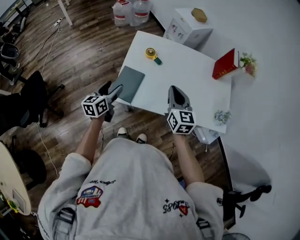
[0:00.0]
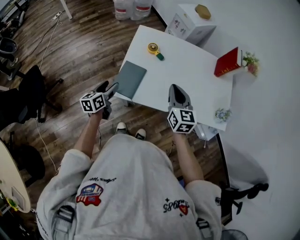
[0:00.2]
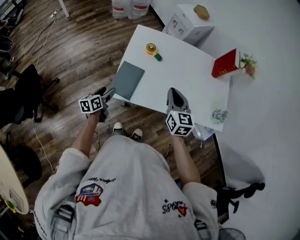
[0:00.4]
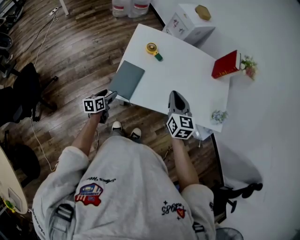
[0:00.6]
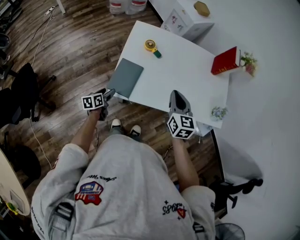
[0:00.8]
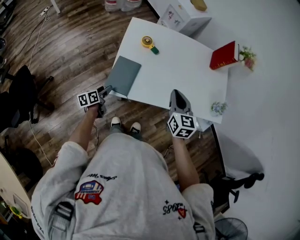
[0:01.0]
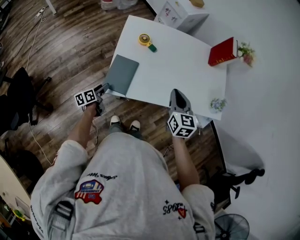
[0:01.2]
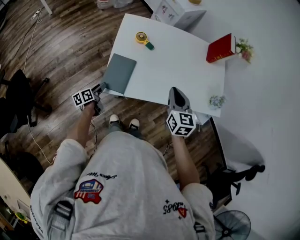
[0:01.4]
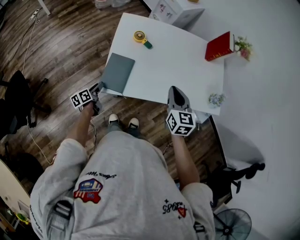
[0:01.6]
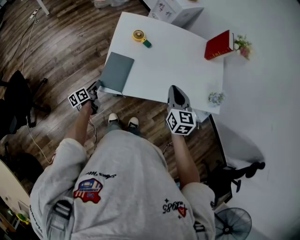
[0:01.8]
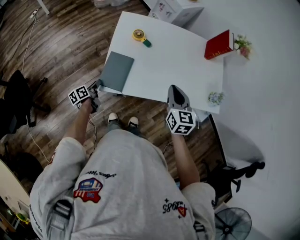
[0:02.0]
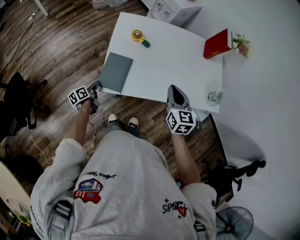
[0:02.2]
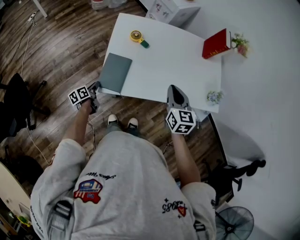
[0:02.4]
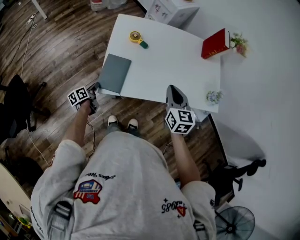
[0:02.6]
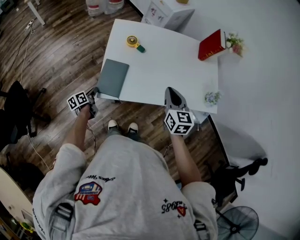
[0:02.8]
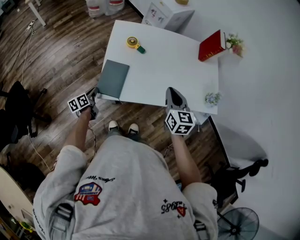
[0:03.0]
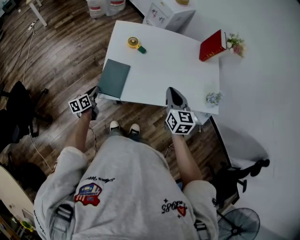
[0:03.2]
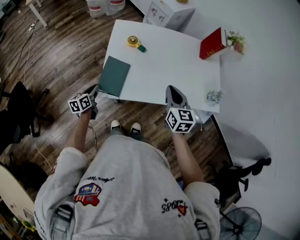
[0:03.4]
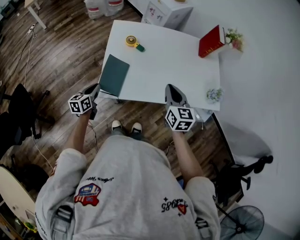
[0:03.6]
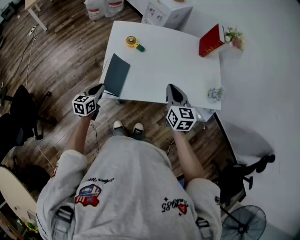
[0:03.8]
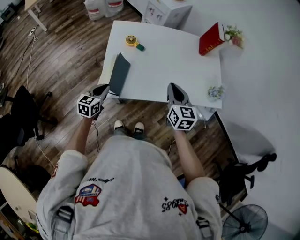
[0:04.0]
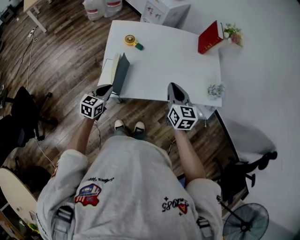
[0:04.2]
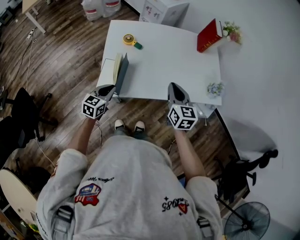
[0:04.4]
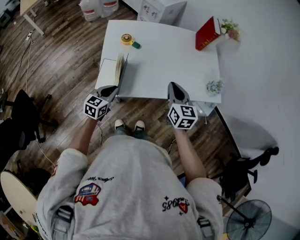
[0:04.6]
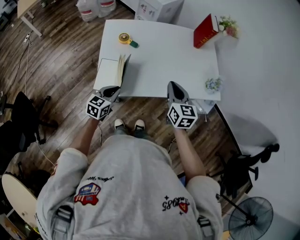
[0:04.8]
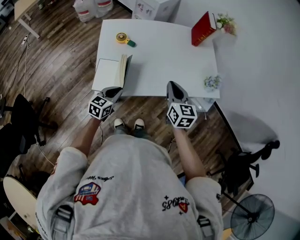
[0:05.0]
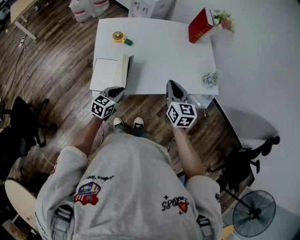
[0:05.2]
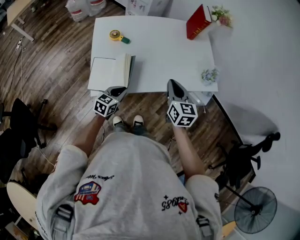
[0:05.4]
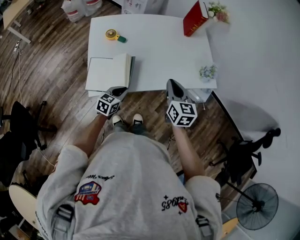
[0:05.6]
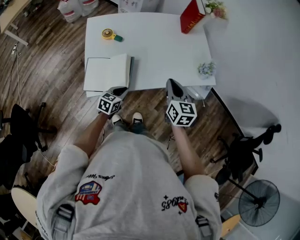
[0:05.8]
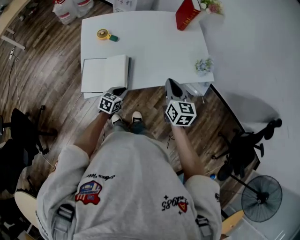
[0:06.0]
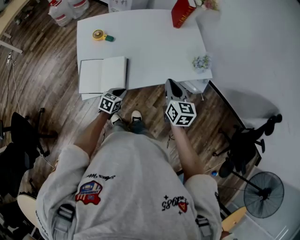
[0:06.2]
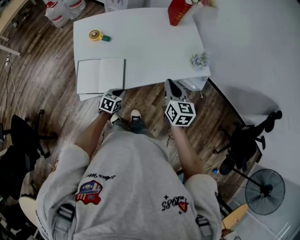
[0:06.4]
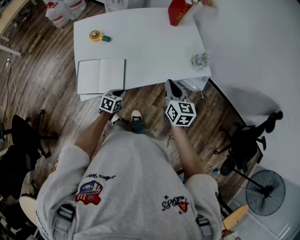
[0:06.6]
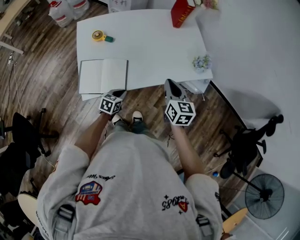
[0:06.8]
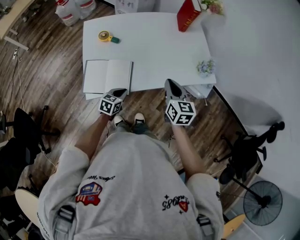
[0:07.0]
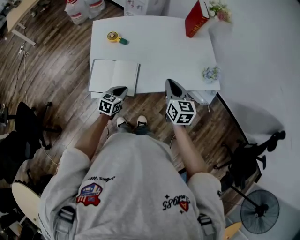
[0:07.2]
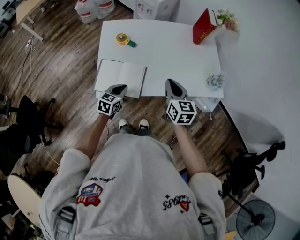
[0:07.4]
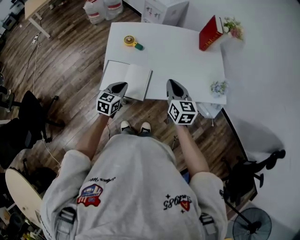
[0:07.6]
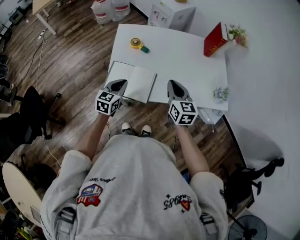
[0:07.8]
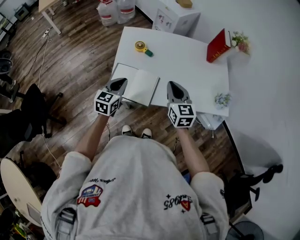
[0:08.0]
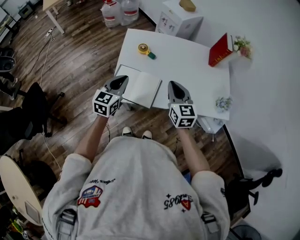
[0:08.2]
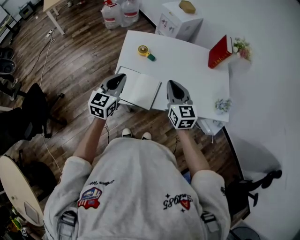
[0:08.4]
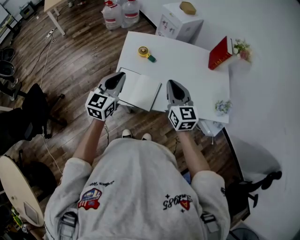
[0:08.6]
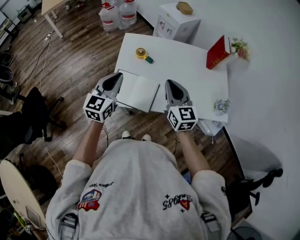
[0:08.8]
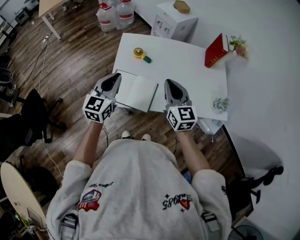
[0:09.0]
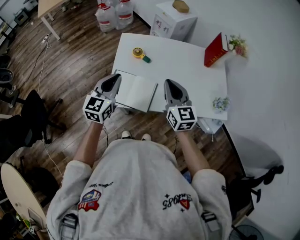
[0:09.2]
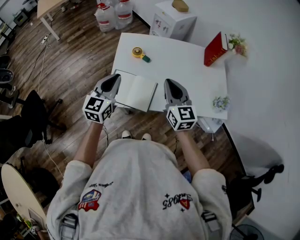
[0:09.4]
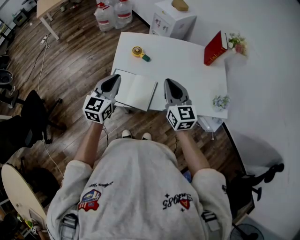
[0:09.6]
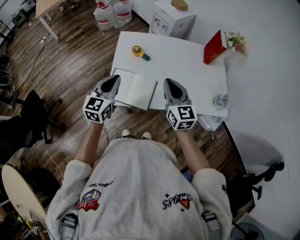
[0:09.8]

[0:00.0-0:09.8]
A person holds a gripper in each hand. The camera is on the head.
0.0 to 1.4 s: The right gripper changes place by some 5 cm, while the left gripper is displaced downward by approximately 20 cm, and changes its angle by roughly 30 degrees.
1.4 to 2.8 s: The left gripper closes up.
2.8 to 4.2 s: The left gripper goes some 20 cm upward and to the right, and twists about 50 degrees clockwise, seen from behind.
4.2 to 5.6 s: The left gripper moves to the right and downward, roughly 15 cm. The right gripper moves to the right, roughly 5 cm.
7.0 to 8.4 s: The right gripper moves about 20 cm, and rotates some 30 degrees. Meanwhile the left gripper moves upward, some 25 cm, and turns by some 40 degrees.
8.4 to 9.8 s: The grippers stay close to where they were, moving slightly.

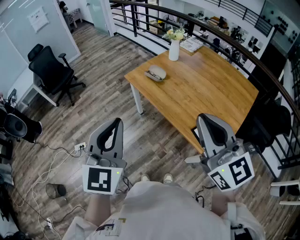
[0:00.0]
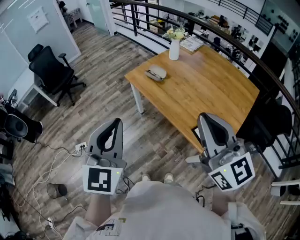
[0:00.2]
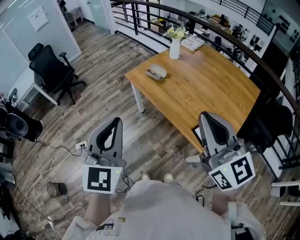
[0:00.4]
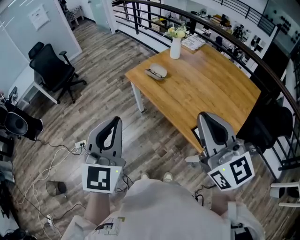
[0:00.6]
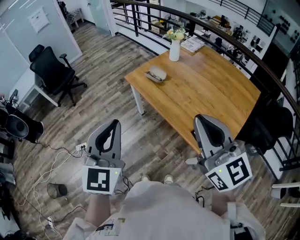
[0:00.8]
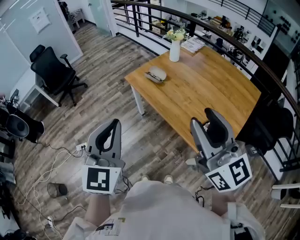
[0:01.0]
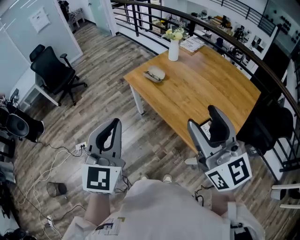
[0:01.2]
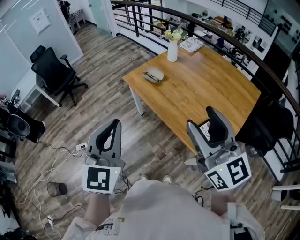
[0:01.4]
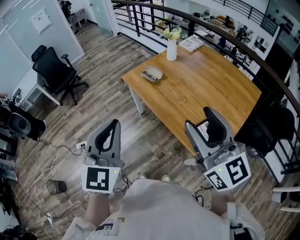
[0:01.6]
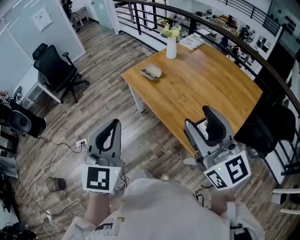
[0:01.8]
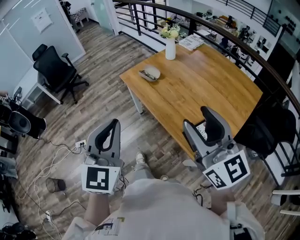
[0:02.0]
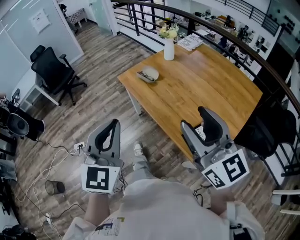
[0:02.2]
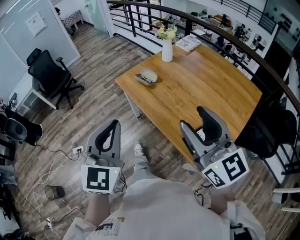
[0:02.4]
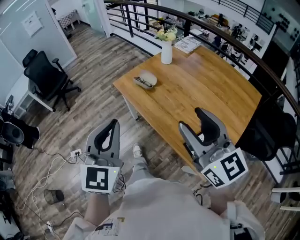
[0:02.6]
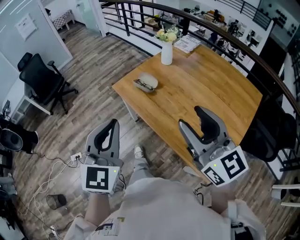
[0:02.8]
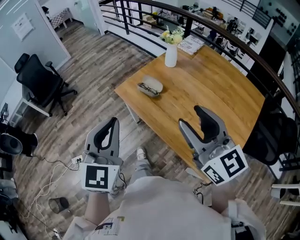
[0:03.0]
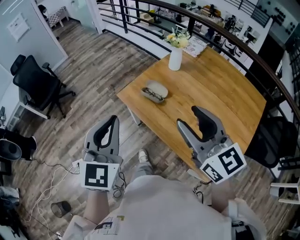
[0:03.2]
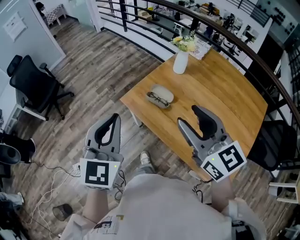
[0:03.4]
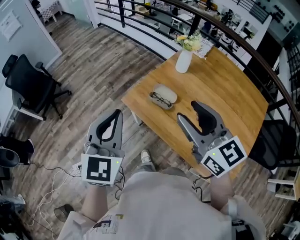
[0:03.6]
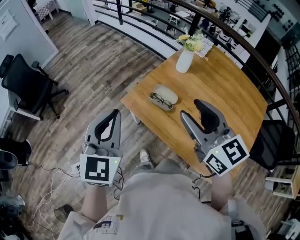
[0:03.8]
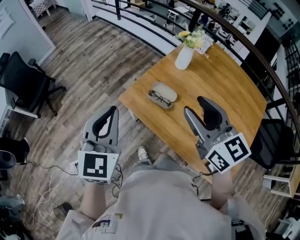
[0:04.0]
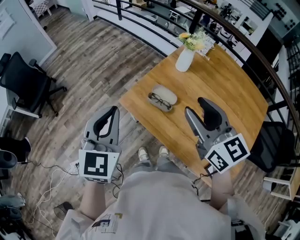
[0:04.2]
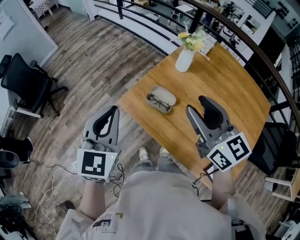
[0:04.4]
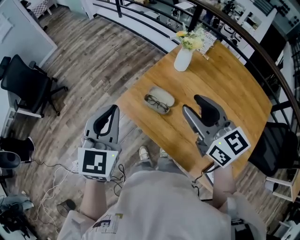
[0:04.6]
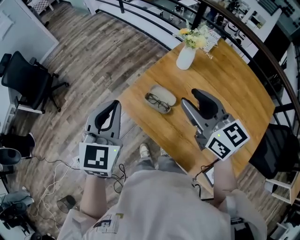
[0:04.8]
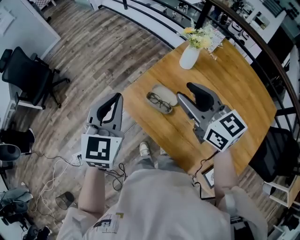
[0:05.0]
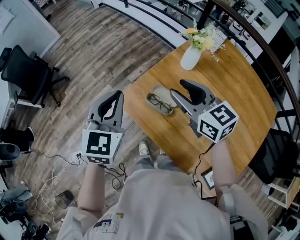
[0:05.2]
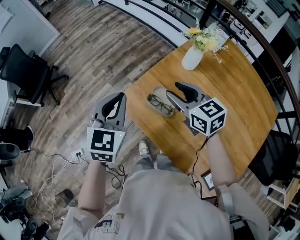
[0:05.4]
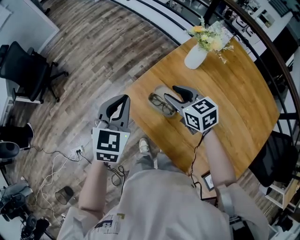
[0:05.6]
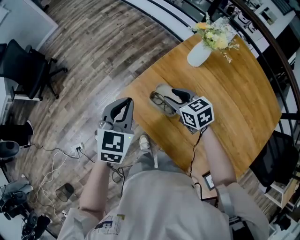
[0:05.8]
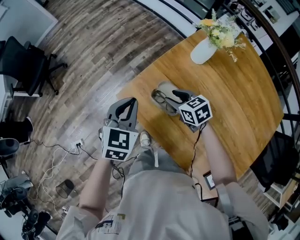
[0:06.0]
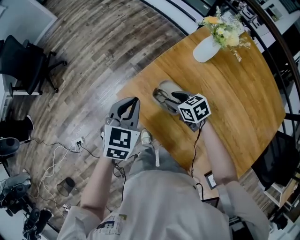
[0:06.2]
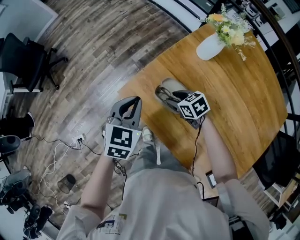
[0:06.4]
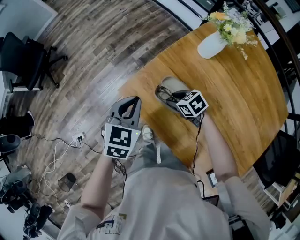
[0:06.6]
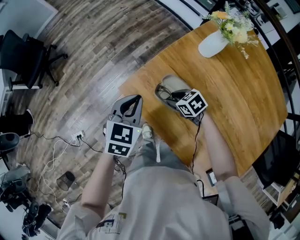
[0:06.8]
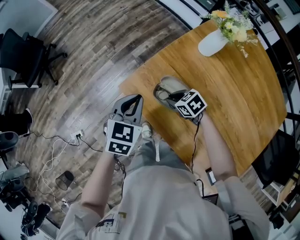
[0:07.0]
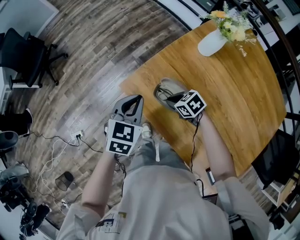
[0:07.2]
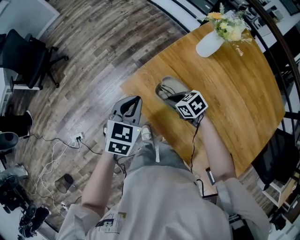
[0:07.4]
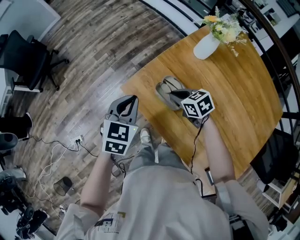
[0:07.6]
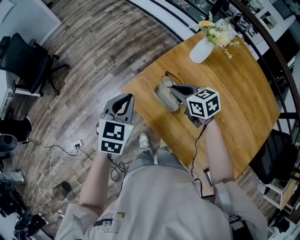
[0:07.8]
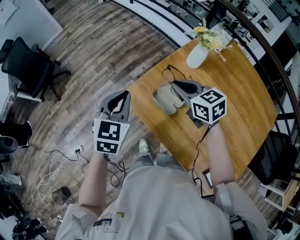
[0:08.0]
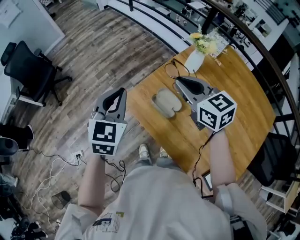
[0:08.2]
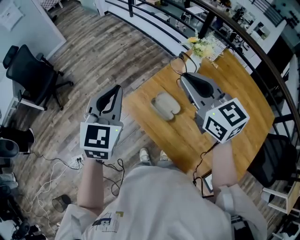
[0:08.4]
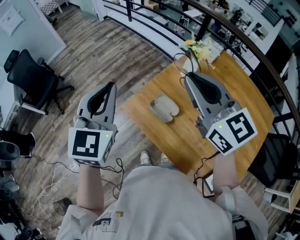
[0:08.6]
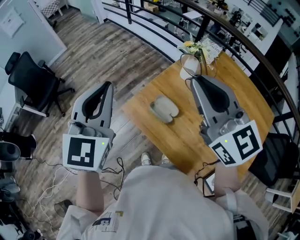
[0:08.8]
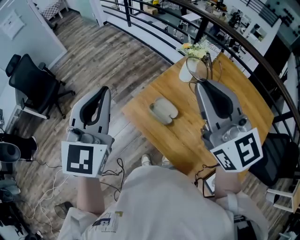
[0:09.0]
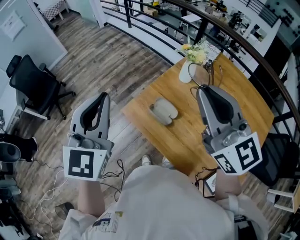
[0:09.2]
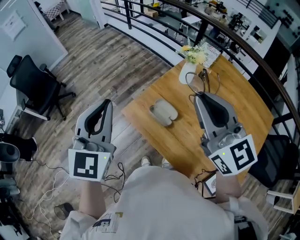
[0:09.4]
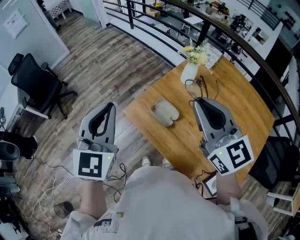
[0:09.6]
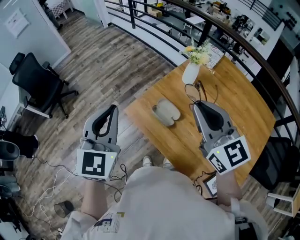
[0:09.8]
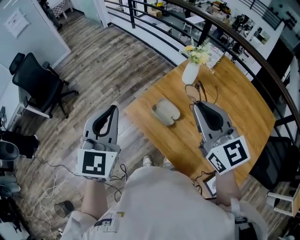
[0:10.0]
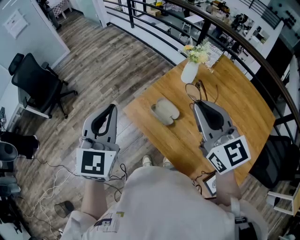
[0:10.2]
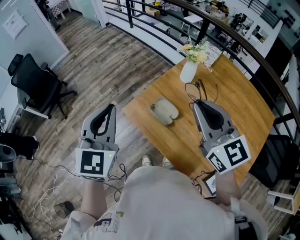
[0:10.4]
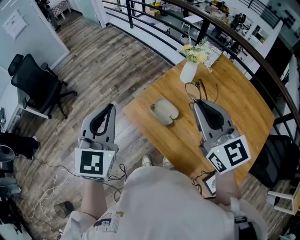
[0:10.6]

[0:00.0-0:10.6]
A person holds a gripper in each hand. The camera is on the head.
0.0 to 1.6 s: The two grippers go roughly 5 cm to the right. The right gripper opens.
1.6 to 3.0 s: The two grippers go approximately 25 cm forward.
3.0 to 4.6 s: Both grippers travel together forward, about 30 cm.
4.6 to 6.0 s: The right gripper goes some 35 cm downward and forward, and points its fingers some 30 degrees further downward; the left gripper goes some 20 cm downward and forward.
6.0 to 7.6 s: The right gripper reaches roughly 10 cm downward, then returns, and closes.
7.6 to 9.0 s: The two grippers go approximately 40 cm upward. The right gripper angles its fingers upward, by approximately 50 degrees. Meanwhile the left gripper tilts its fingers approximately 30 degrees upward.
9.0 to 10.6 s: Both grippers travel together downward, approximately 5 cm.

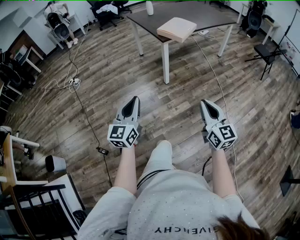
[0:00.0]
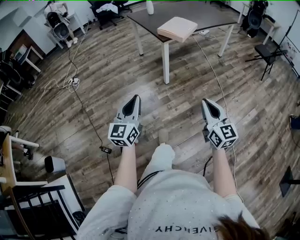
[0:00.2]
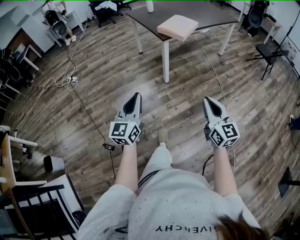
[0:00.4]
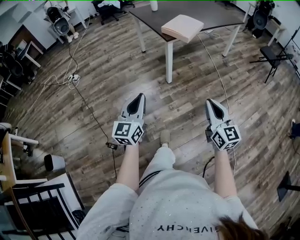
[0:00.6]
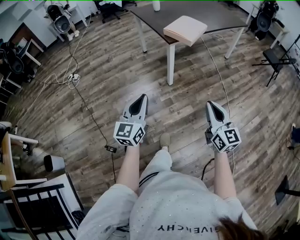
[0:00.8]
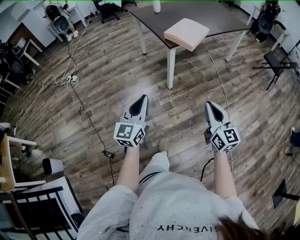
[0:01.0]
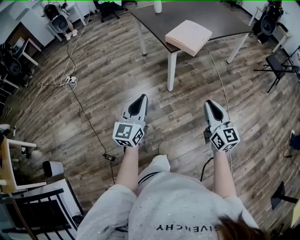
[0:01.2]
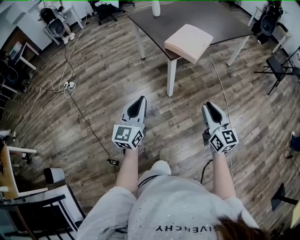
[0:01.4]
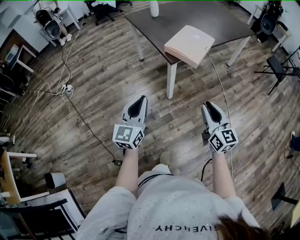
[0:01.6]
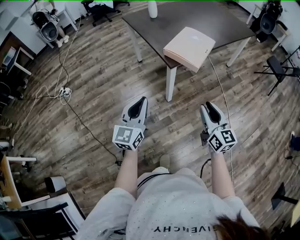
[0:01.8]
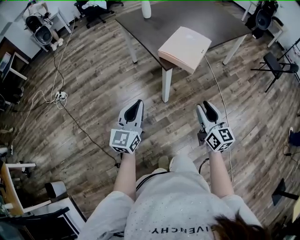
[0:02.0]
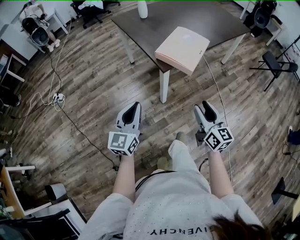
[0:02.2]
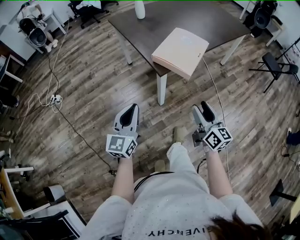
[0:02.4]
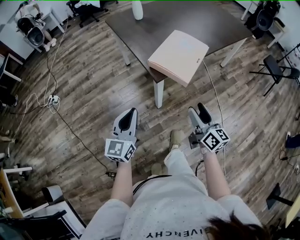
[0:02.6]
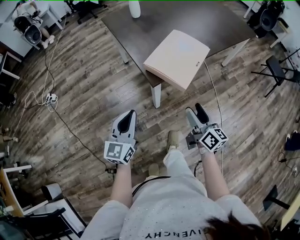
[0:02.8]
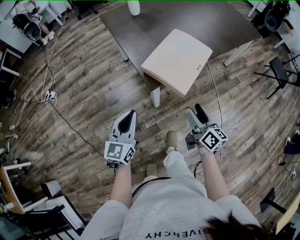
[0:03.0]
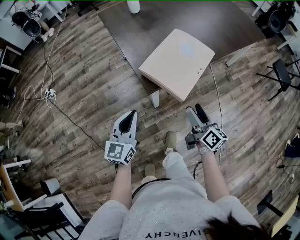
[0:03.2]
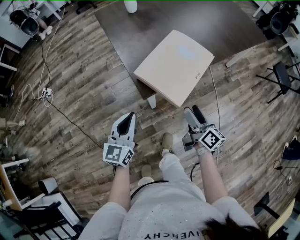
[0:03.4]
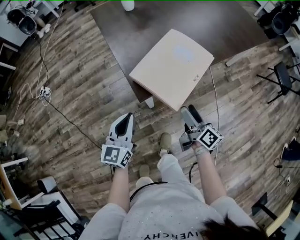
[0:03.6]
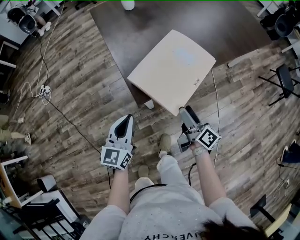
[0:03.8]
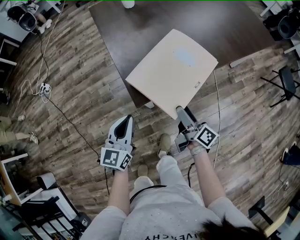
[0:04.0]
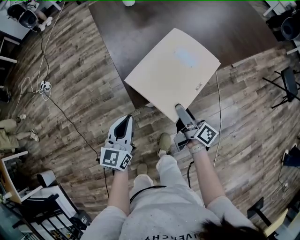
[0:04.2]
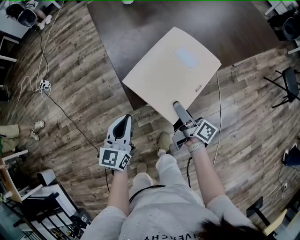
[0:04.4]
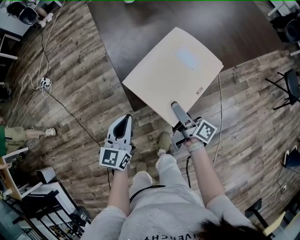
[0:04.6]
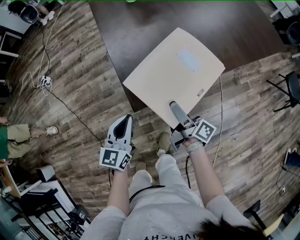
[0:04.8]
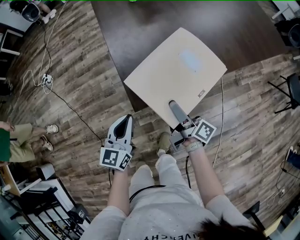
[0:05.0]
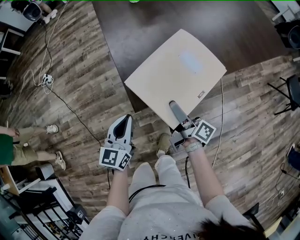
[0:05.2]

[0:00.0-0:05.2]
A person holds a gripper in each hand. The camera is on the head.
0.0 to 1.8 s: The two grippers travel together, forward, about 50 cm.
1.8 to 3.4 s: The right gripper is displaced forward and downward by about 35 cm, rolls clockwise, seen from behind, by roughly 40 degrees, and opens its fingers; the left gripper heads forward, to the right and downward, covering some 30 cm.
3.4 to 5.2 s: The left gripper shifts about 10 cm forward and downward, while the right gripper goes some 15 cm forward, and turns by some 30 degrees.
